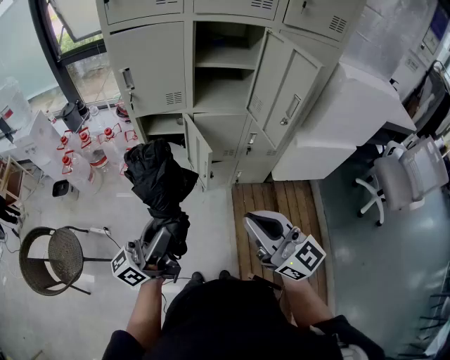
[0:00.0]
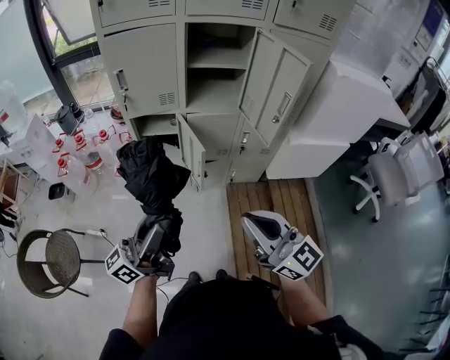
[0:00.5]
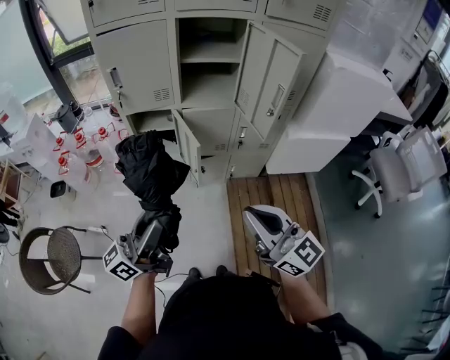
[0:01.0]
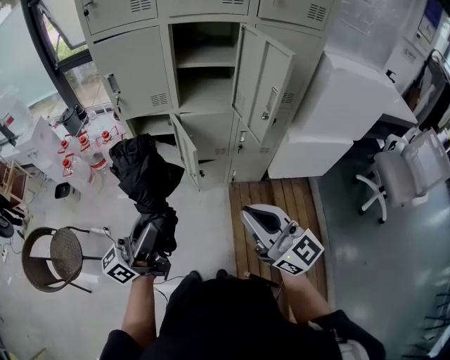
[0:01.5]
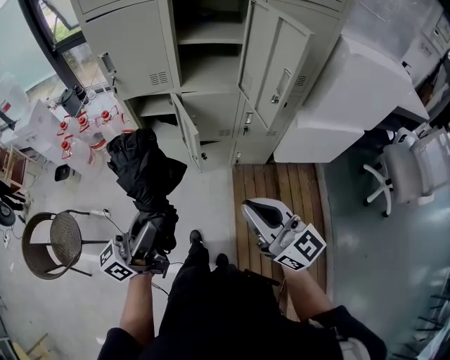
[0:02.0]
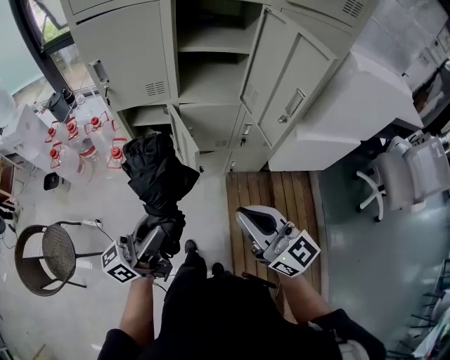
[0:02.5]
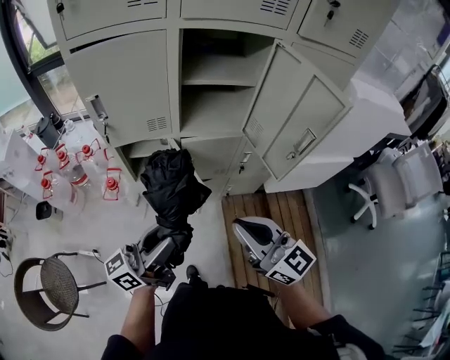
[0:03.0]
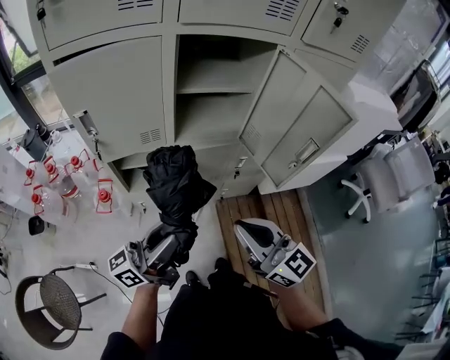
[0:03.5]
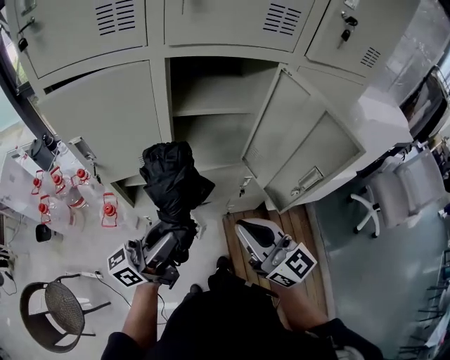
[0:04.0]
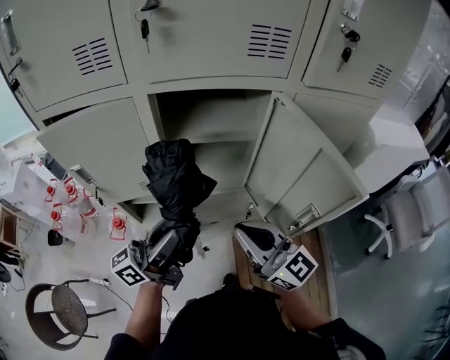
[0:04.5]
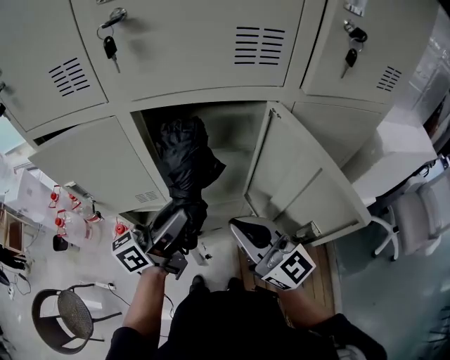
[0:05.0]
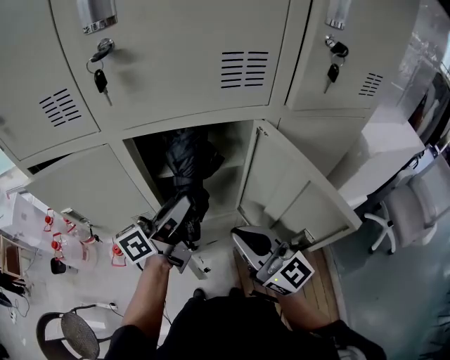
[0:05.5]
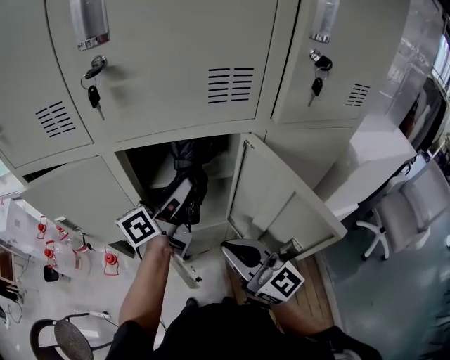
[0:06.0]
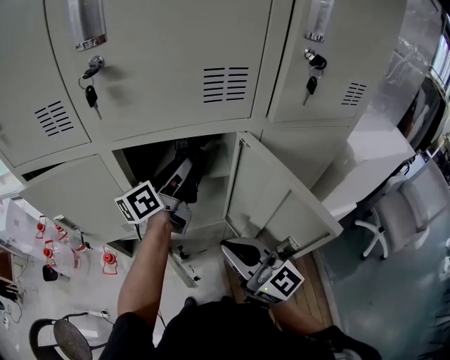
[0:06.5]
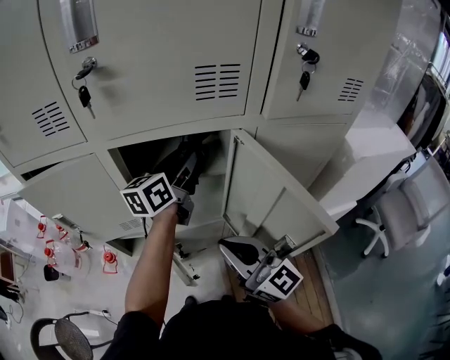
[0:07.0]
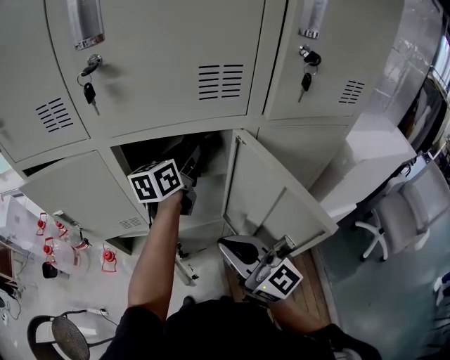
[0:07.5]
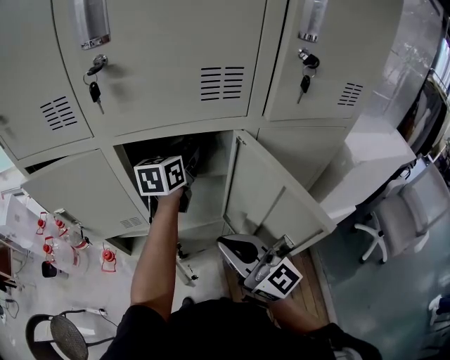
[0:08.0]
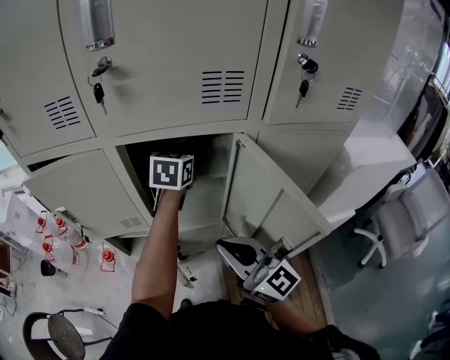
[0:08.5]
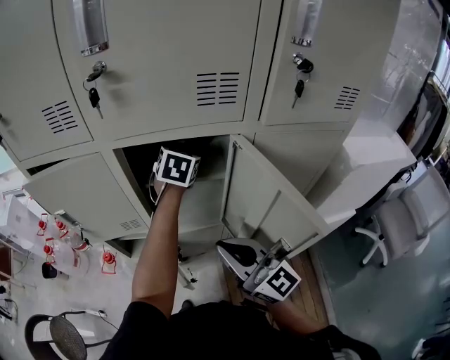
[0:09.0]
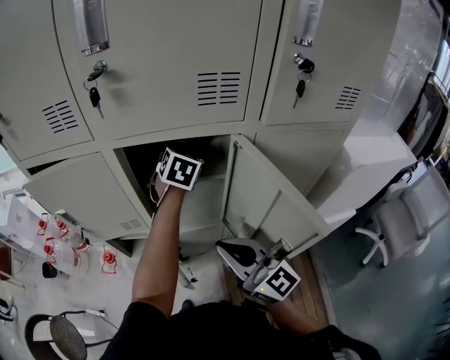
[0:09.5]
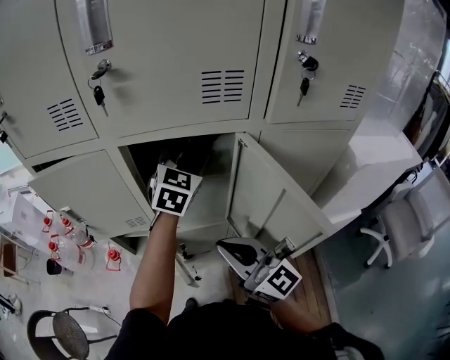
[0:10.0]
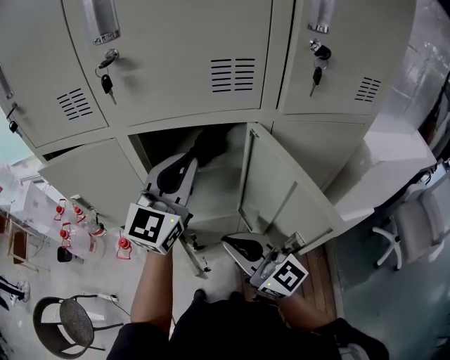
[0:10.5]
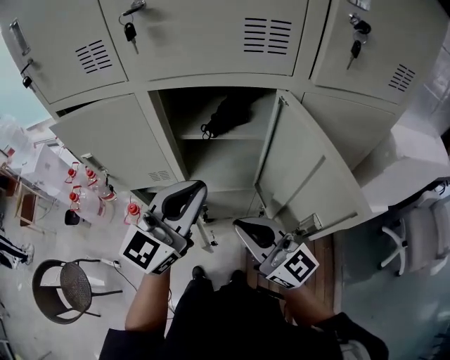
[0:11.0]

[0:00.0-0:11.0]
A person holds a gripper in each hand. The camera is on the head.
0:00.0 to 0:02.0: The two grippers go approximately 5 cm to the right.
0:02.0 to 0:03.5: The left gripper shifts approximately 25 cm forward, while the right gripper shifts roughly 20 cm forward and to the left.
0:03.5 to 0:05.5: The grippers both shift forward by approximately 25 cm.
0:05.5 to 0:07.5: The left gripper is displaced forward and to the right by approximately 15 cm, and changes its angle by some 30 degrees.
0:07.5 to 0:09.0: The left gripper moves about 5 cm, and rotates some 50 degrees.
0:09.0 to 0:11.0: The left gripper goes about 30 cm backward and to the left, tilts its fingers about 40 degrees upward, and closes its fingers.

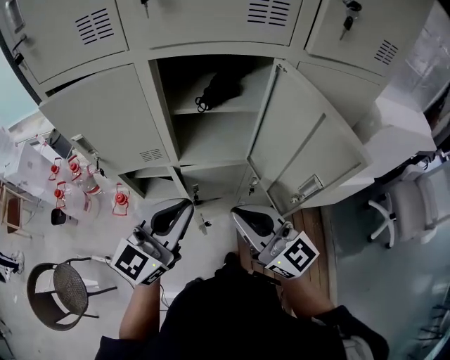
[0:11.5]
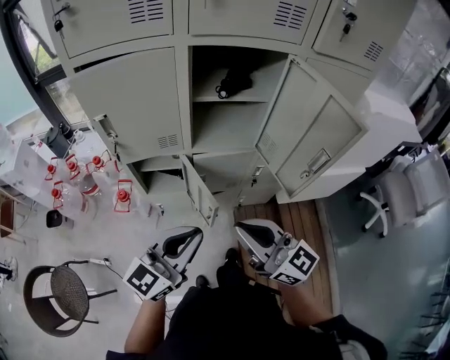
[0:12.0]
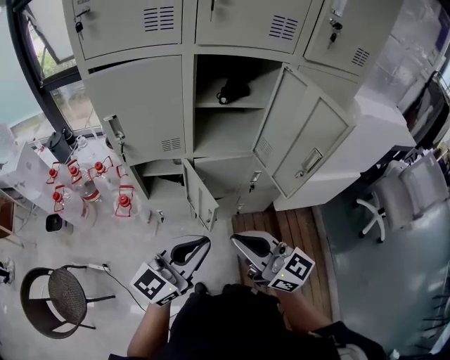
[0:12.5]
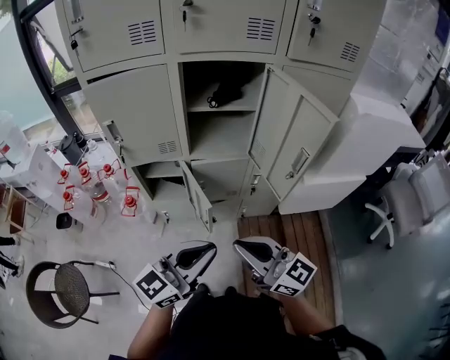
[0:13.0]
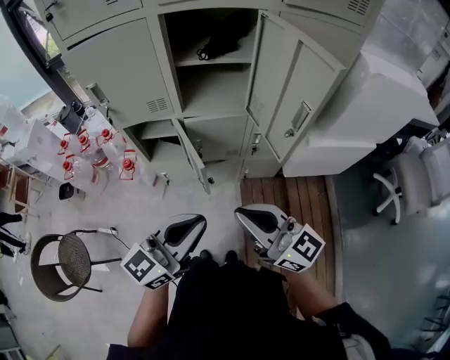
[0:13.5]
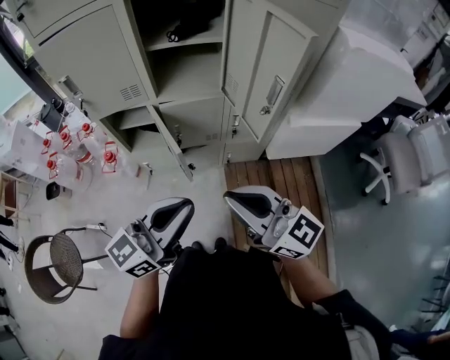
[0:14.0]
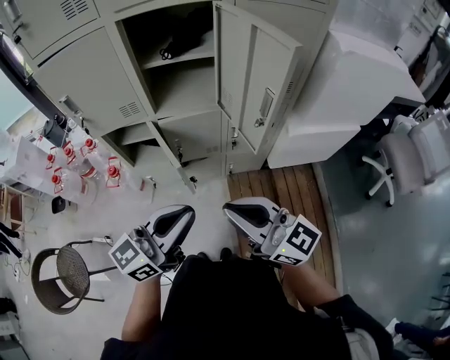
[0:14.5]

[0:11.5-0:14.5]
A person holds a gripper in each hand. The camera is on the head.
0:11.5 to 0:13.0: Both grippers move backward, some 20 cm.
0:13.0 to 0:14.5: Both grippers move to the right, some 5 cm.

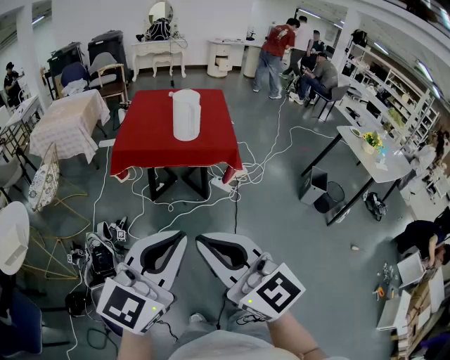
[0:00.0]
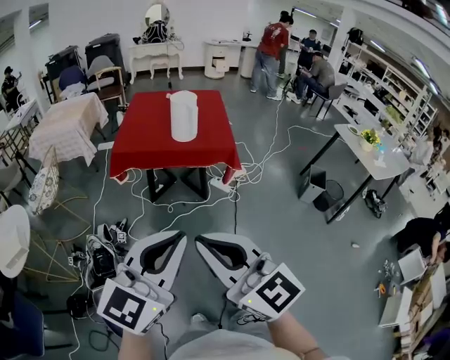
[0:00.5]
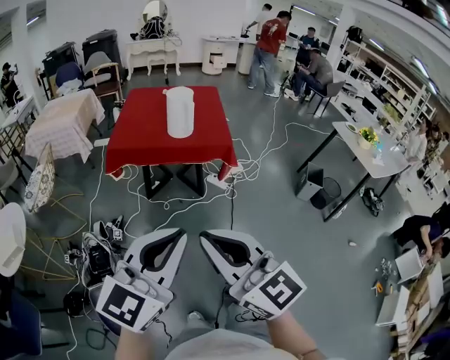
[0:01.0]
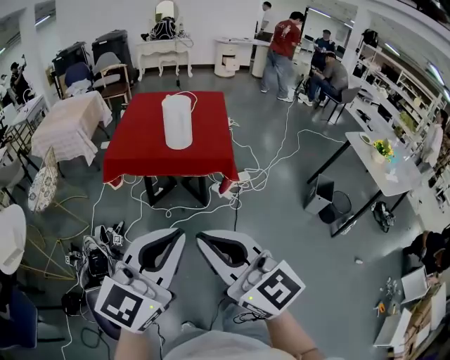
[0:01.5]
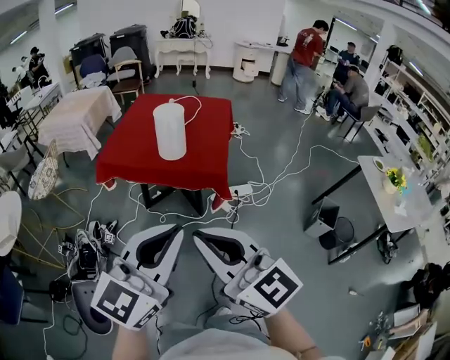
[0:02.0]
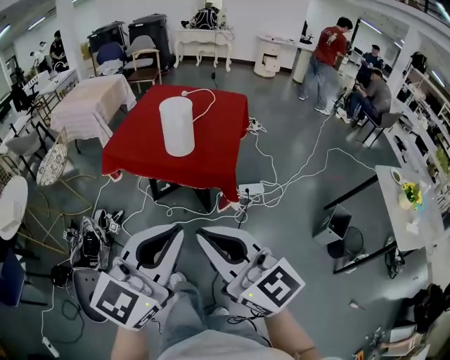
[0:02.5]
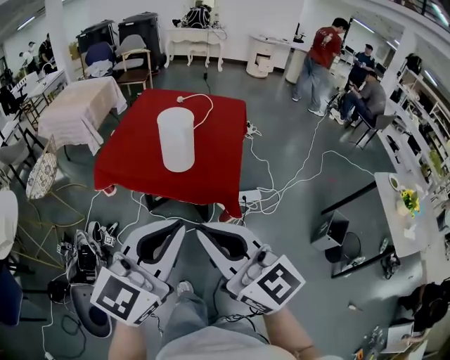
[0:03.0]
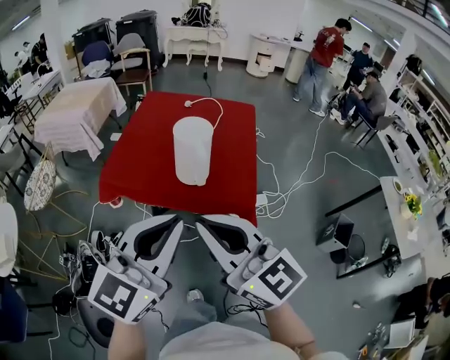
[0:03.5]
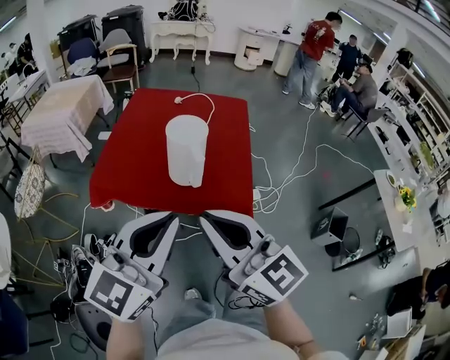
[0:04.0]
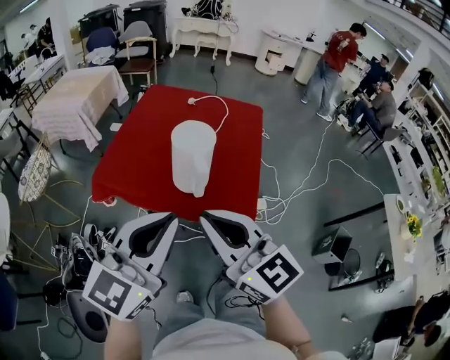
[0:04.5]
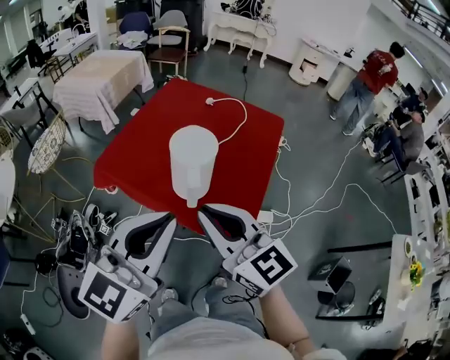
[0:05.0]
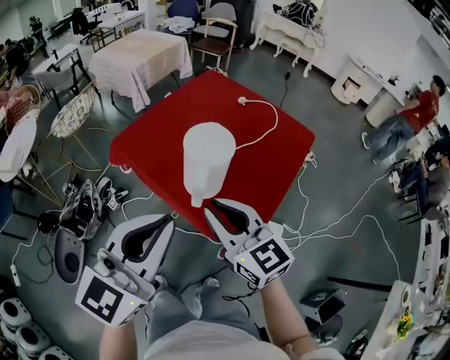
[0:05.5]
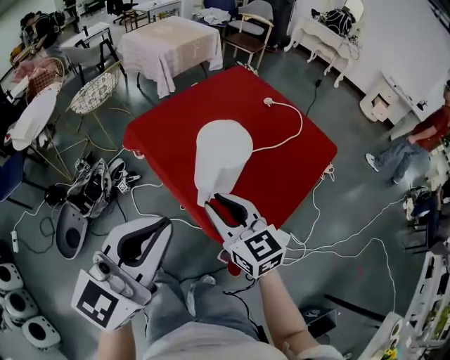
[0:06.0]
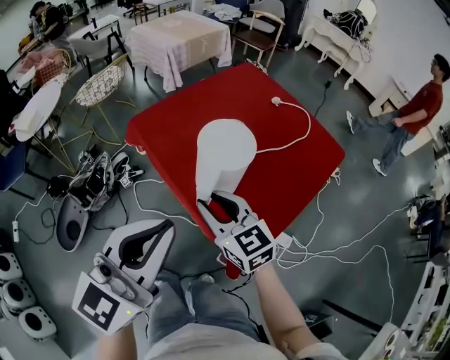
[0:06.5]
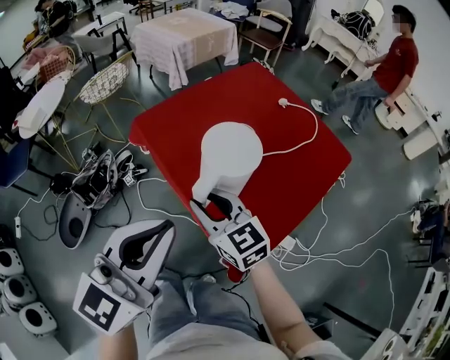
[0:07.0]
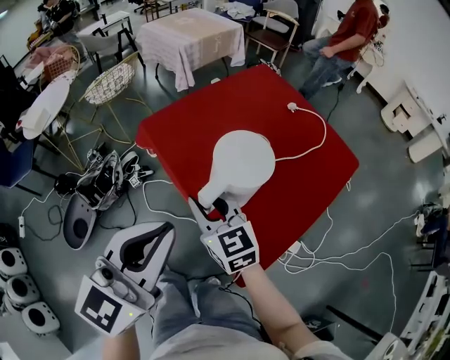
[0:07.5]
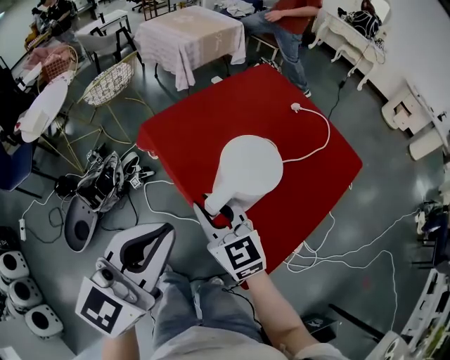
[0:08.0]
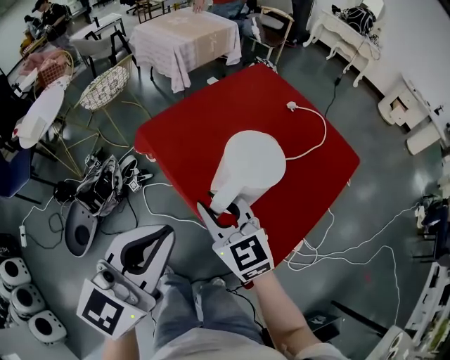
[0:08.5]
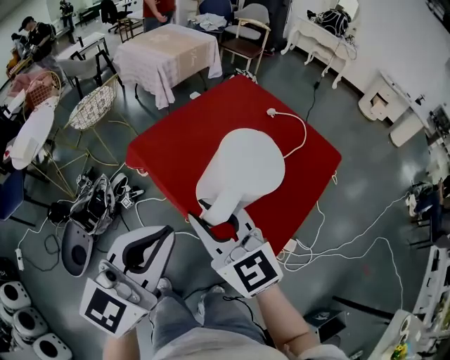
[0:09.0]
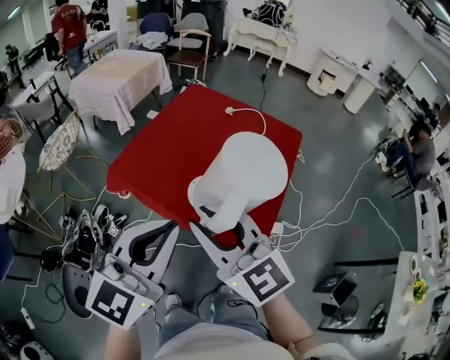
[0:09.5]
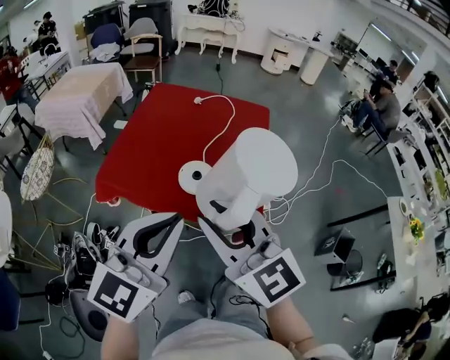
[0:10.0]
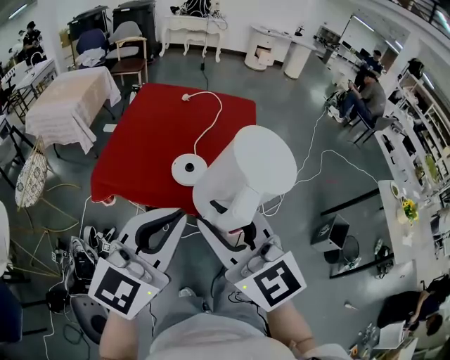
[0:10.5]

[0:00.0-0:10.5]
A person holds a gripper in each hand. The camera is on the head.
0:00.0 to 0:02.0: The two grippers go some 25 cm to the right and forward.
0:02.0 to 0:04.0: Both grippers move forward, about 25 cm.
0:04.0 to 0:06.5: The right gripper shifts by some 30 cm, changes its angle by some 40 degrees, and opens up. Meanwhile the left gripper ends up roughly 15 cm from where it was, and turns by some 40 degrees.
0:06.5 to 0:08.5: The right gripper ends up some 5 cm from where it was. The left gripper is displaced forward by about 5 cm.
0:08.5 to 0:10.5: The right gripper moves some 25 cm, and swivels approximately 40 degrees. Meanwhile the left gripper shifts by about 10 cm, and turns by roughly 40 degrees.

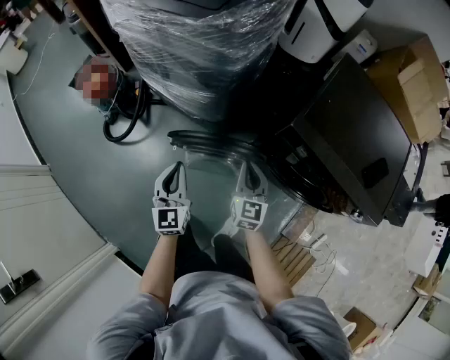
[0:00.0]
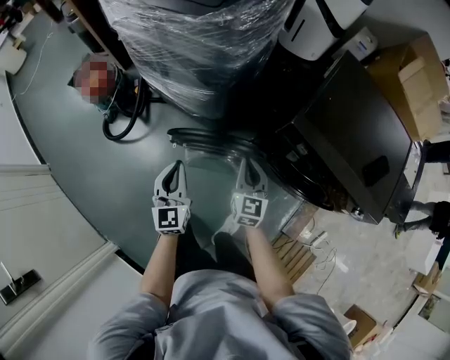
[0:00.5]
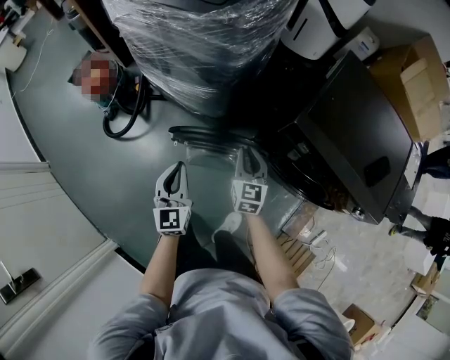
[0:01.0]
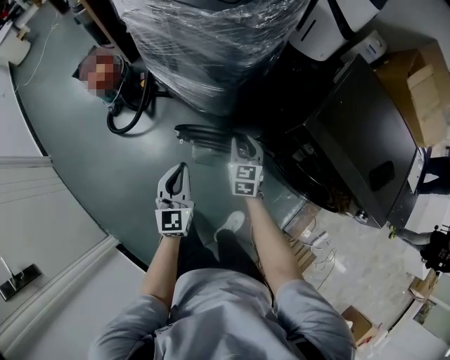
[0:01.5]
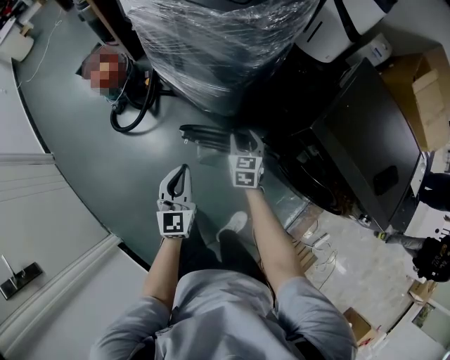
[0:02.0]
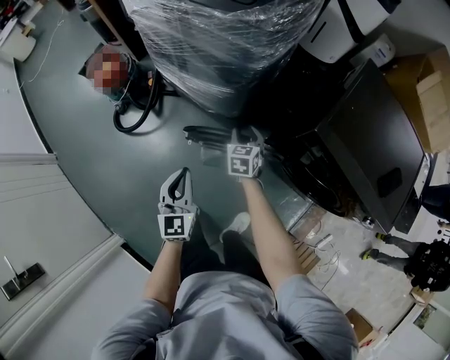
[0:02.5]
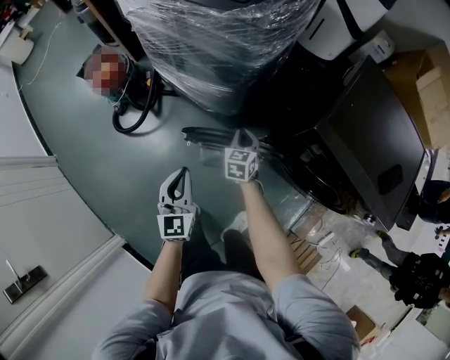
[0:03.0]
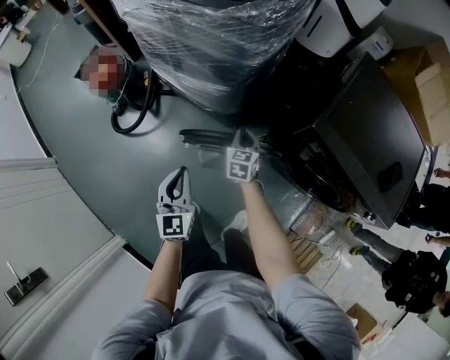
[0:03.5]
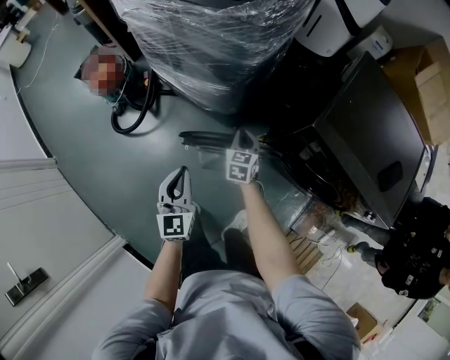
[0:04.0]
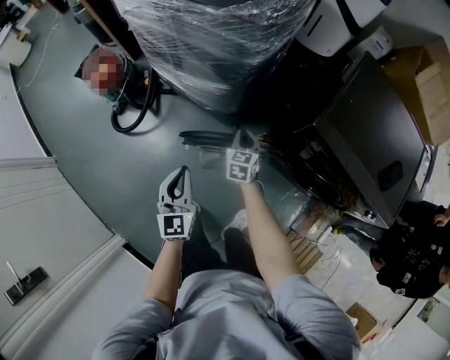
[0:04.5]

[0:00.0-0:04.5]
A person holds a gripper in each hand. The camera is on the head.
0:00.0 to 0:02.0: The right gripper travels forward, downward and to the left by about 15 cm, and opens its fingers.
0:02.0 to 0:04.5: The right gripper closes up.
